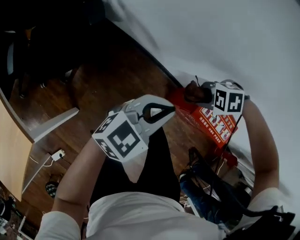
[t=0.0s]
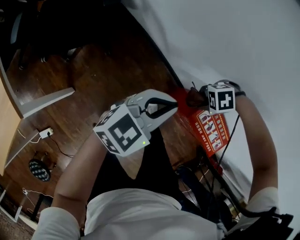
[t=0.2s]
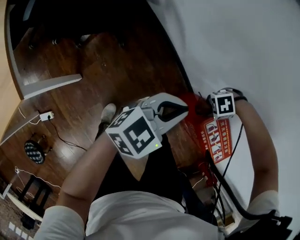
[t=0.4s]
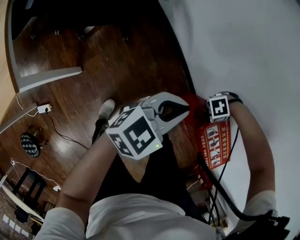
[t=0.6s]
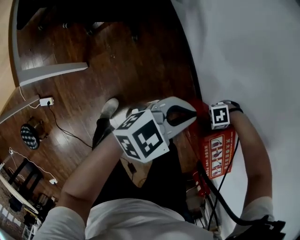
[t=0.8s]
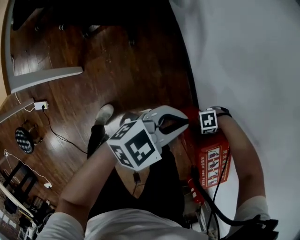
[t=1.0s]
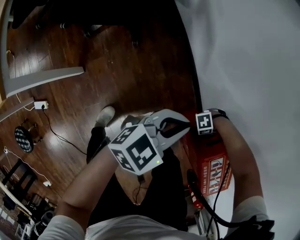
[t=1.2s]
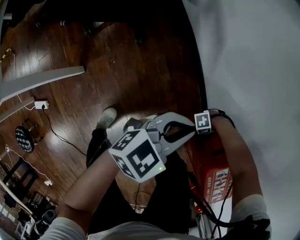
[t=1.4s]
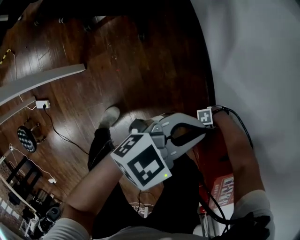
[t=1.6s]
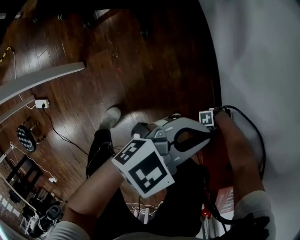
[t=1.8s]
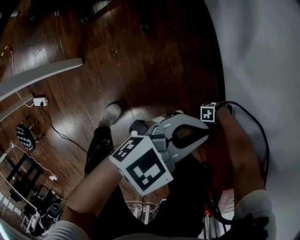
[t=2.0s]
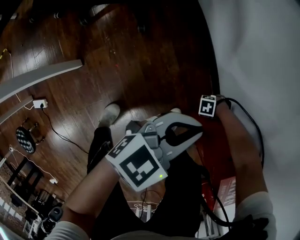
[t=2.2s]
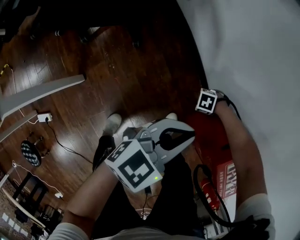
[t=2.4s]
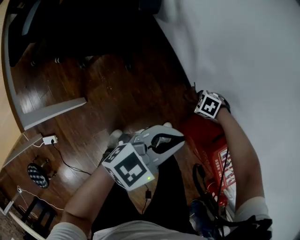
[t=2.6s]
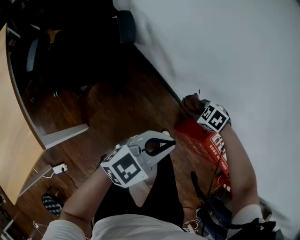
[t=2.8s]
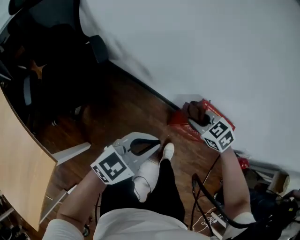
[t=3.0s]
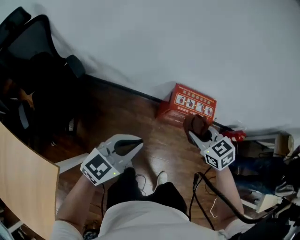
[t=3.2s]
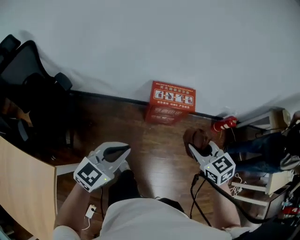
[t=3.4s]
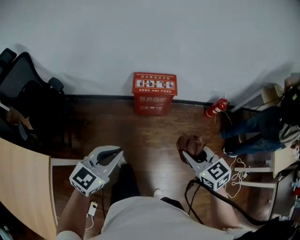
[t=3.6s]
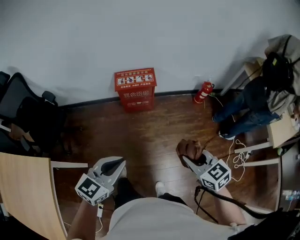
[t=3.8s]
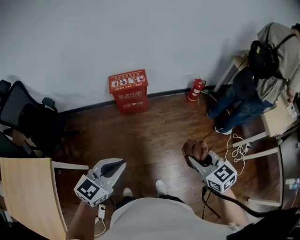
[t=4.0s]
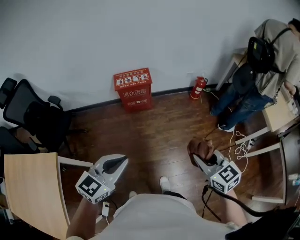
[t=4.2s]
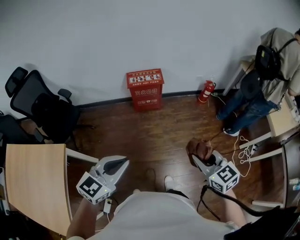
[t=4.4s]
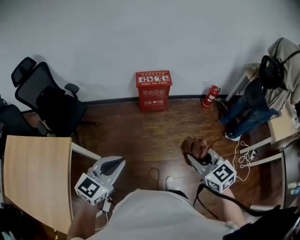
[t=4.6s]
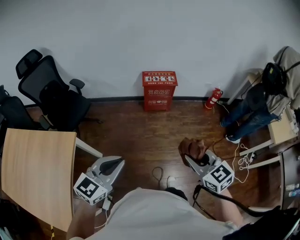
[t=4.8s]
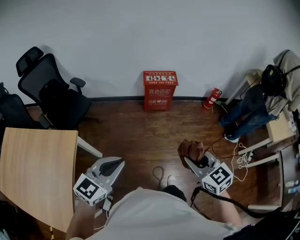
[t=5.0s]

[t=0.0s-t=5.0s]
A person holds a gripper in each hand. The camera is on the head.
t=0.0s to t=1.6s: The right gripper travels downward by approximately 50 cm, and tilts its fingers roughly 30 degrees upward; the left gripper heads downward, covering about 20 cm, and turns by some 30 degrees.
t=1.6s to t=3.4s: The left gripper moves upward, approximately 35 cm, and turns by some 50 degrees. Meanwhile the right gripper travels upward by about 70 cm, and swivels approximately 160 degrees.
t=3.4s to t=5.0s: The grippers both shift backward by some 40 cm.

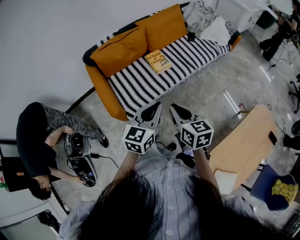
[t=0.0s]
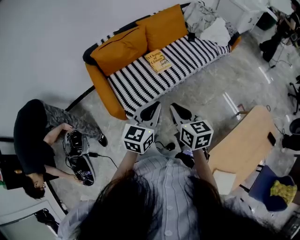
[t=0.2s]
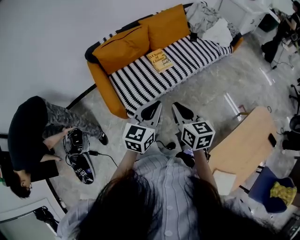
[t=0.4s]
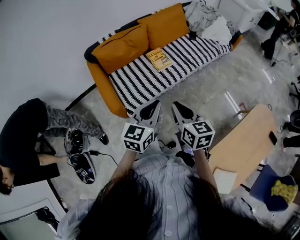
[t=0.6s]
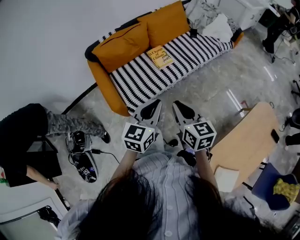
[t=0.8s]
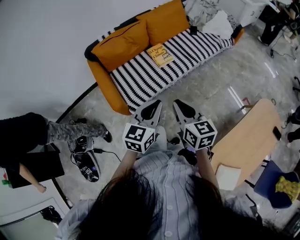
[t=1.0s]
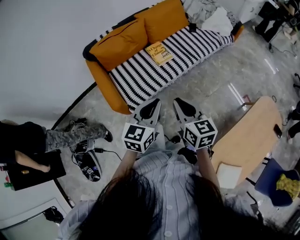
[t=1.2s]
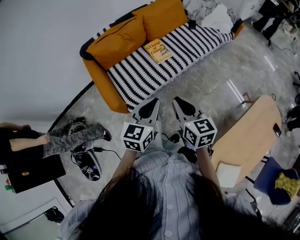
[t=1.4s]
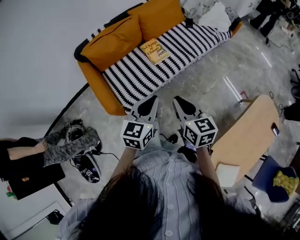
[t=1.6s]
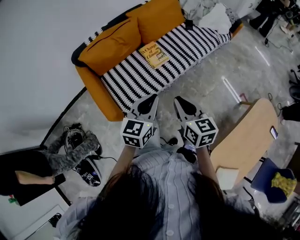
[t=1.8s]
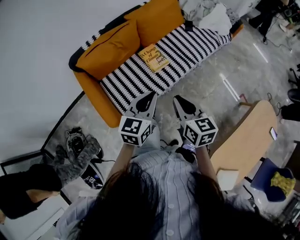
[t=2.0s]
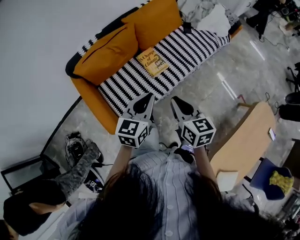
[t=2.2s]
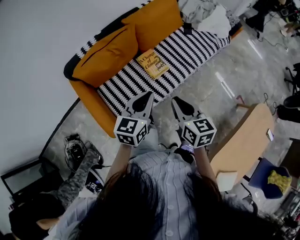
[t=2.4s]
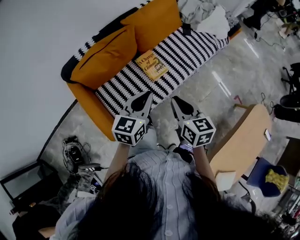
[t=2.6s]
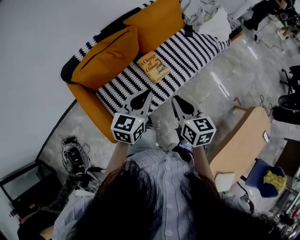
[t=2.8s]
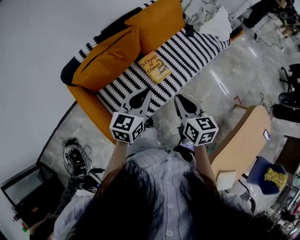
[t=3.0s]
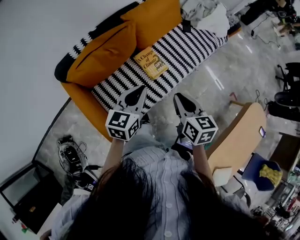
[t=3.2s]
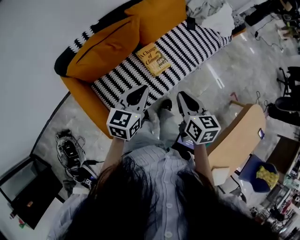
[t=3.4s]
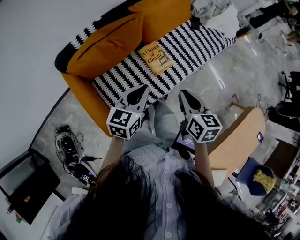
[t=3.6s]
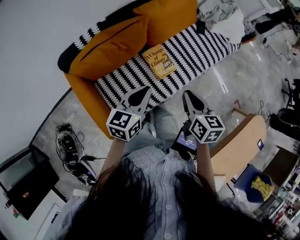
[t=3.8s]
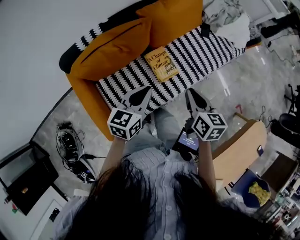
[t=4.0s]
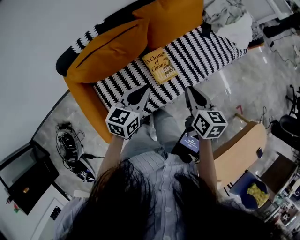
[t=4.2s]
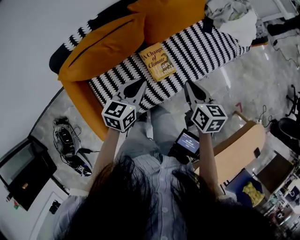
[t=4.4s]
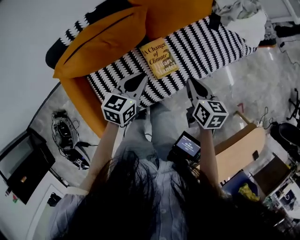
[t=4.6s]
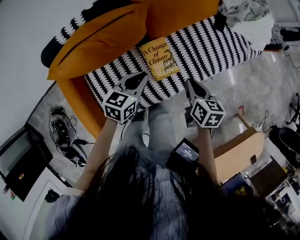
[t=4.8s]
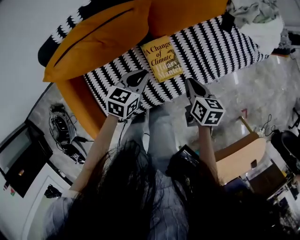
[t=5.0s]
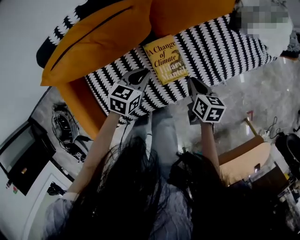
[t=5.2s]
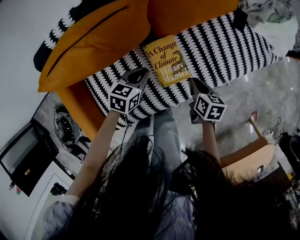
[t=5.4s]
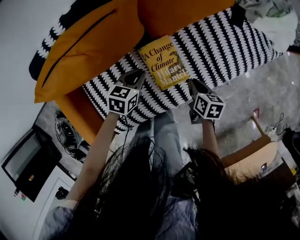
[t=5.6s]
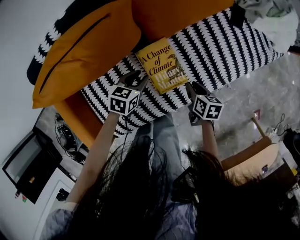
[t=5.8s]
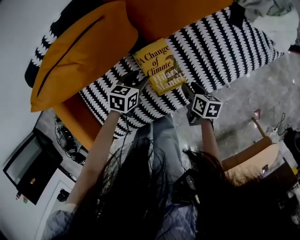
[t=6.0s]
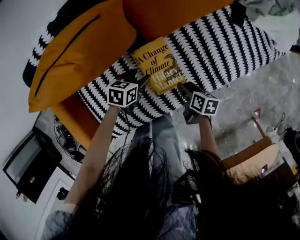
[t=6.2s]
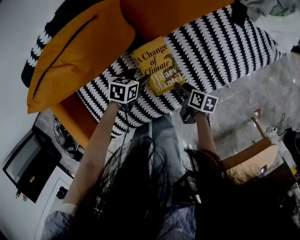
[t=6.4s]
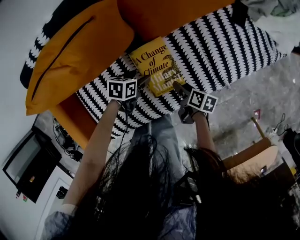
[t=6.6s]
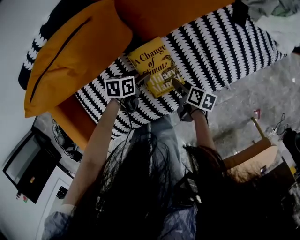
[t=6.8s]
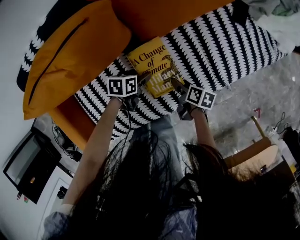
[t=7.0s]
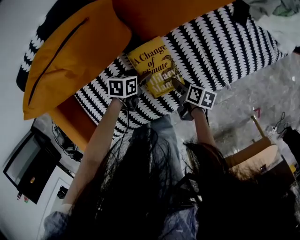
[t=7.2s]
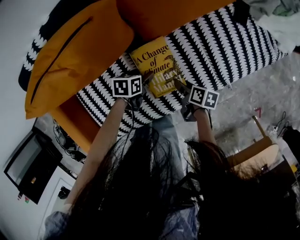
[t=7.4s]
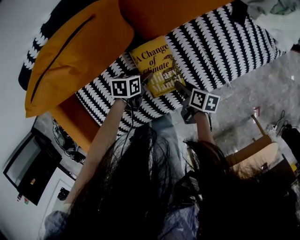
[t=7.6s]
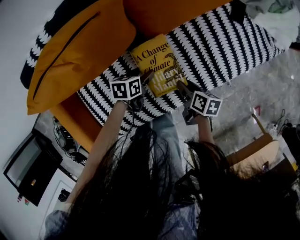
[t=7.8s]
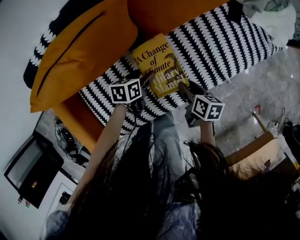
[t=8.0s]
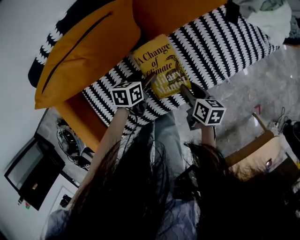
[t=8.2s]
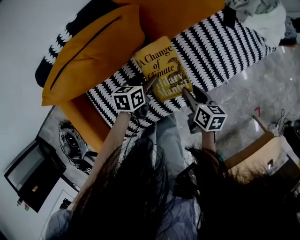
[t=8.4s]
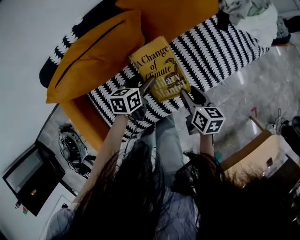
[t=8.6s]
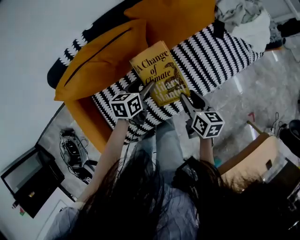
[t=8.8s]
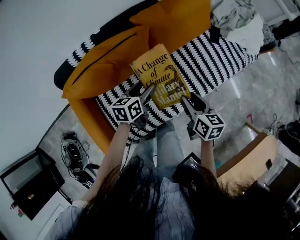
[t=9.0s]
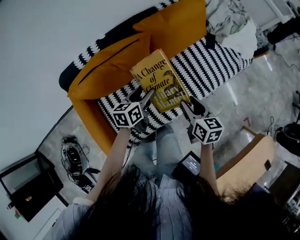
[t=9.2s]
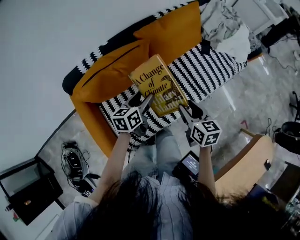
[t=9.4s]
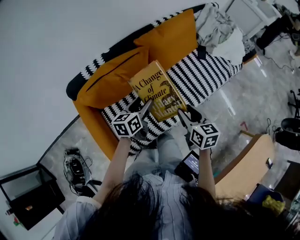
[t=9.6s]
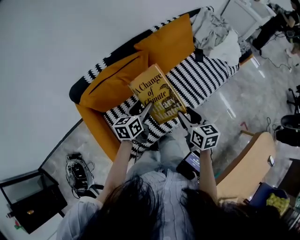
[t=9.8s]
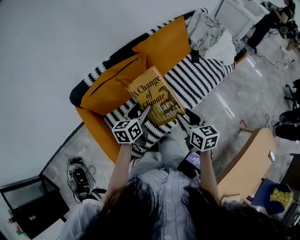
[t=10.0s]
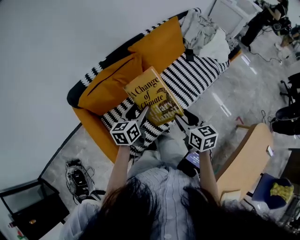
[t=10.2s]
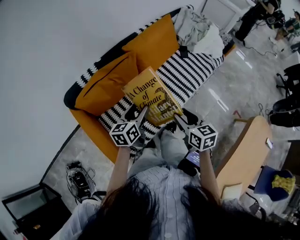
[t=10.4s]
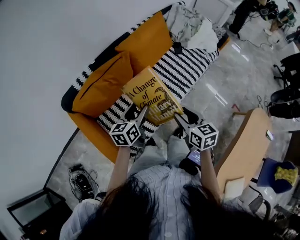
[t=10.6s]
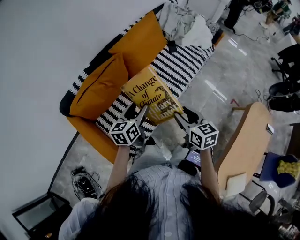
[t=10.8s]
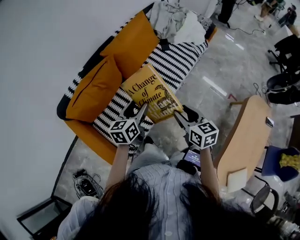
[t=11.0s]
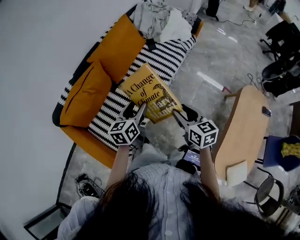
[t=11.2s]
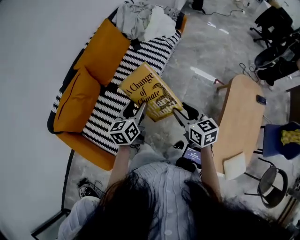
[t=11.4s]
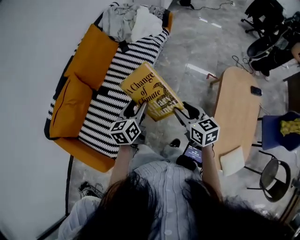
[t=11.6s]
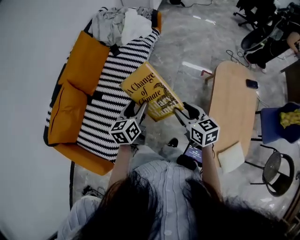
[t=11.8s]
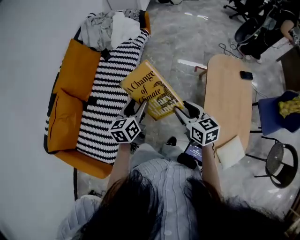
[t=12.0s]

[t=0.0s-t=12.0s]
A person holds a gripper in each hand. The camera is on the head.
t=0.0s to t=1.6s: The left gripper shifts by approximately 5 cm.
t=1.6s to t=3.0s: The two grippers go roughly 30 cm forward and to the left.
t=3.0s to t=4.4s: The grippers both shift forward and downward by some 20 cm.
t=4.4s to t=6.0s: The grippers both shift downward by about 35 cm. The right gripper turns by about 30 degrees, and opens, while the left gripper swivels roughly 30 degrees, and opens.
t=6.0s to t=7.6s: The left gripper shifts approximately 5 cm downward.
t=7.6s to t=9.0s: Both grippers travel together upward, approximately 30 cm. The right gripper swivels roughly 40 degrees. The left gripper changes its angle by about 30 degrees.
t=9.0s to t=10.4s: The right gripper shifts roughly 20 cm backward and upward; the left gripper moves upward and backward, about 20 cm.
t=10.4s to t=12.0s: The two grippers travel together, some 40 cm. The right gripper changes its angle by roughly 30 degrees; the left gripper turns by some 30 degrees.

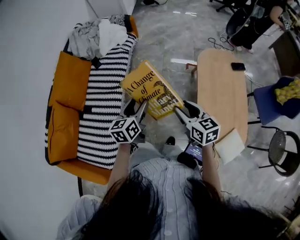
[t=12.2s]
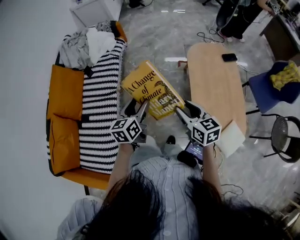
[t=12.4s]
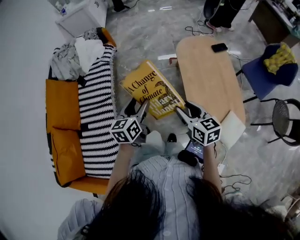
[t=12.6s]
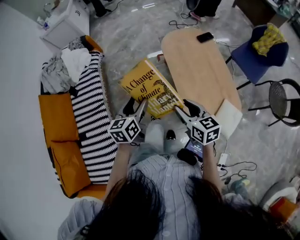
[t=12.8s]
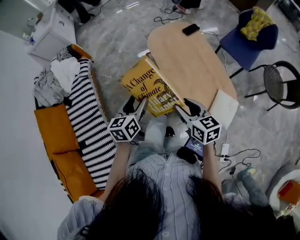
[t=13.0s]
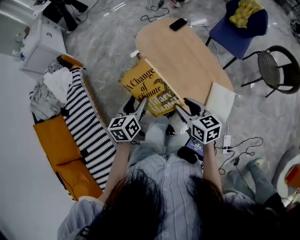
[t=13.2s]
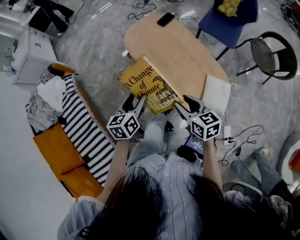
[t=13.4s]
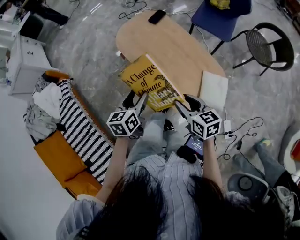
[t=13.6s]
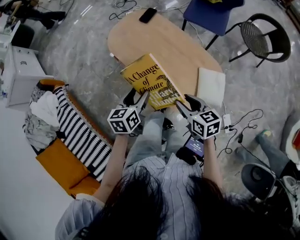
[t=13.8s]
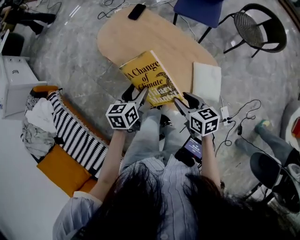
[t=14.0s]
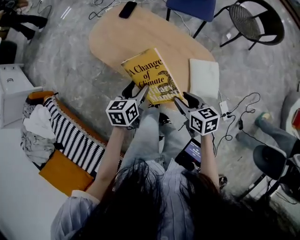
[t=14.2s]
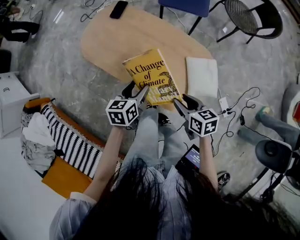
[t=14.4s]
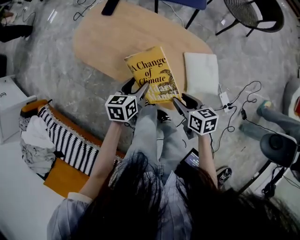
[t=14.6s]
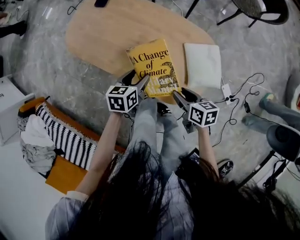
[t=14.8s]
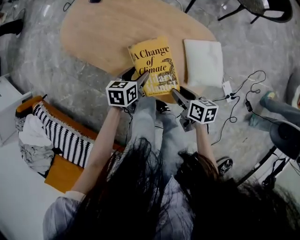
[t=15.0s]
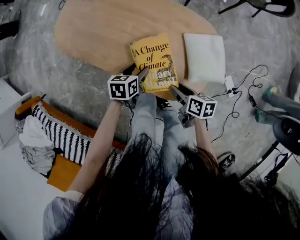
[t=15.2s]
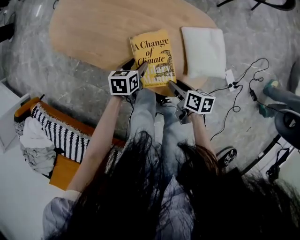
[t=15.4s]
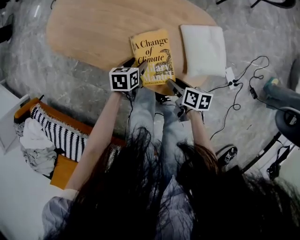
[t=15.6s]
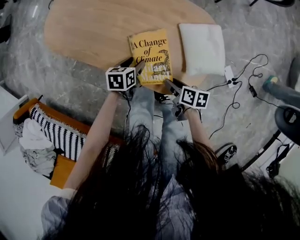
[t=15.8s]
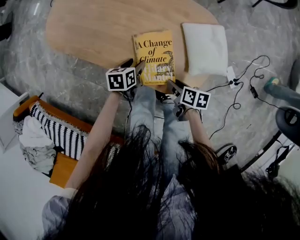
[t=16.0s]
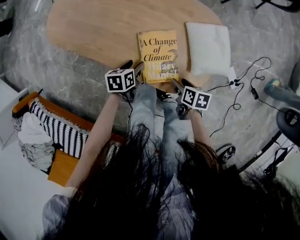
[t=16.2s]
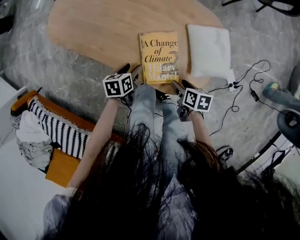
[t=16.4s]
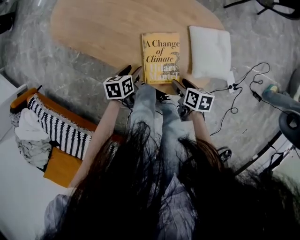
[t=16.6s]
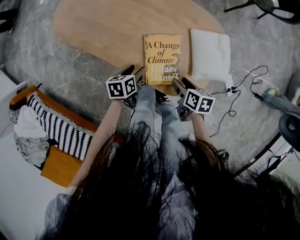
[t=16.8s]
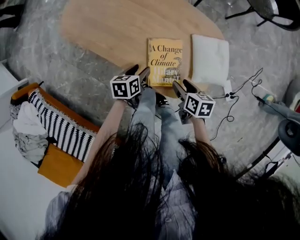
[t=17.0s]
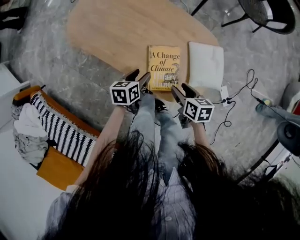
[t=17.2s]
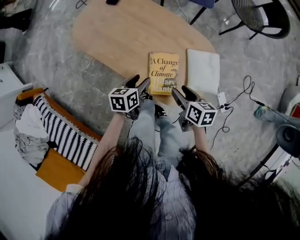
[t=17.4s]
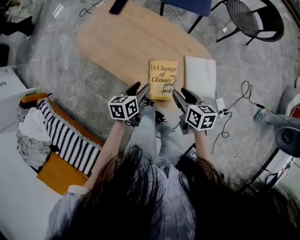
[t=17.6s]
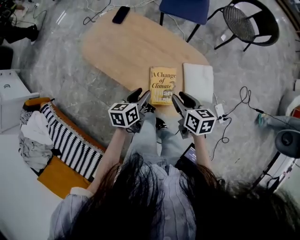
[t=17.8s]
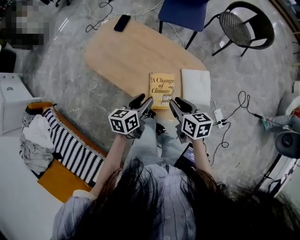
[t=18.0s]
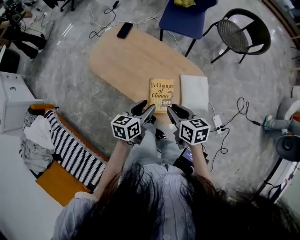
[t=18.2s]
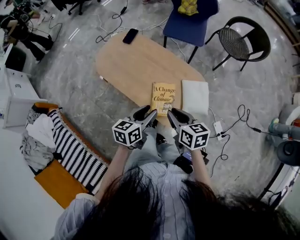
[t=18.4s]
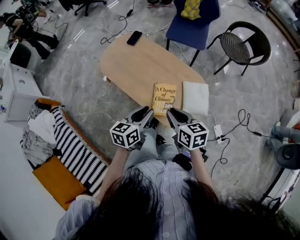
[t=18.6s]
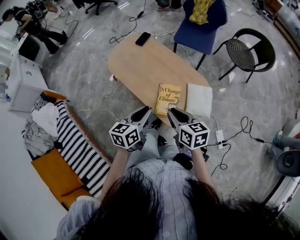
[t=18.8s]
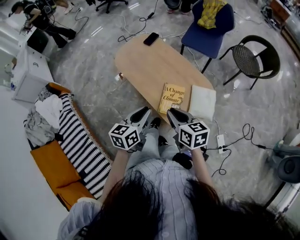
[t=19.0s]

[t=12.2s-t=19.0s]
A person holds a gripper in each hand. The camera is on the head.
t=12.2s to t=13.6s: The right gripper changes place by about 25 cm, and changes its angle by some 50 degrees. Meanwhile the left gripper shifts by roughly 35 cm, and rotates roughly 50 degrees.
t=13.6s to t=15.0s: The two grippers go some 25 cm downward. The left gripper swivels approximately 40 degrees. Meanwhile the right gripper rolls clockwise, seen from behind, by about 40 degrees.
t=15.0s to t=16.2s: The grippers both shift downward by about 10 cm.
t=16.2s to t=17.6s: The two grippers go about 20 cm upward. The right gripper swivels roughly 30 degrees.
t=17.6s to t=19.0s: The grippers both shift upward and backward by some 25 cm. The right gripper changes its angle by approximately 30 degrees, and closes its fingers; the left gripper turns by approximately 20 degrees, and closes.
